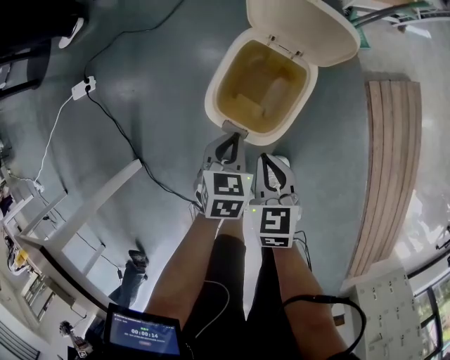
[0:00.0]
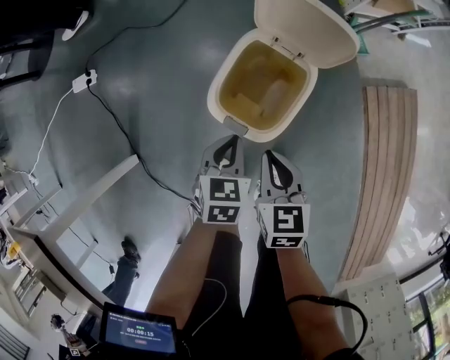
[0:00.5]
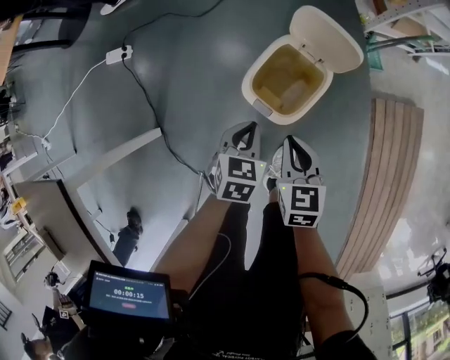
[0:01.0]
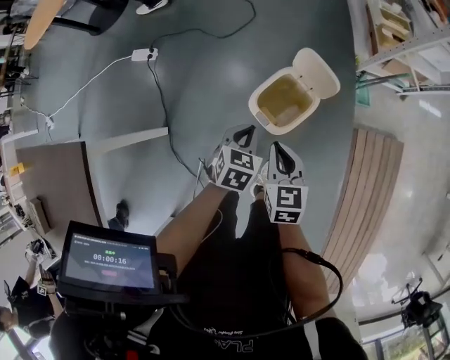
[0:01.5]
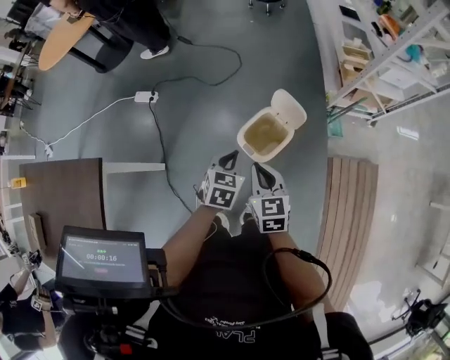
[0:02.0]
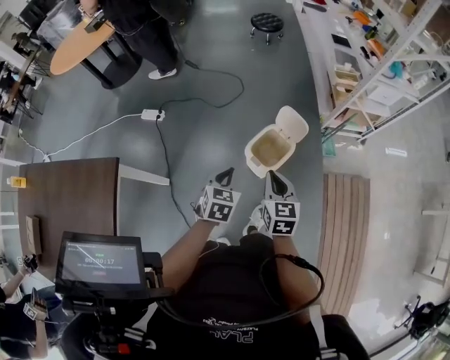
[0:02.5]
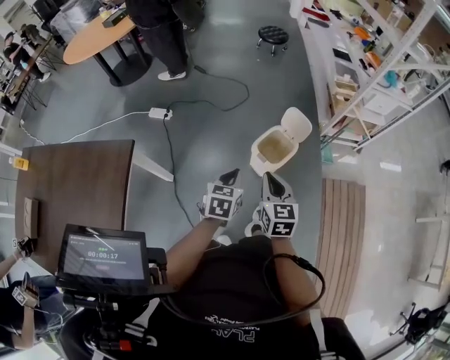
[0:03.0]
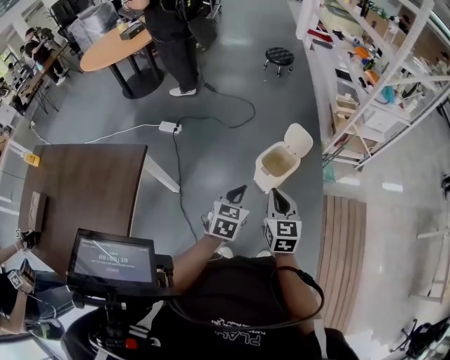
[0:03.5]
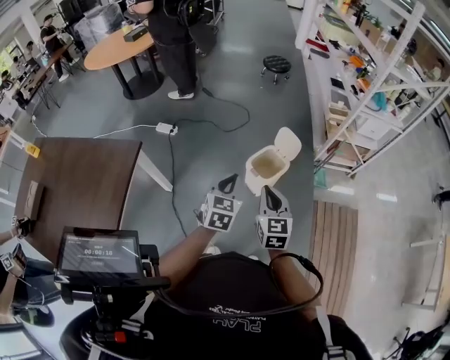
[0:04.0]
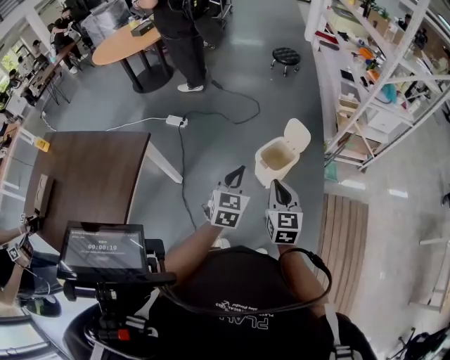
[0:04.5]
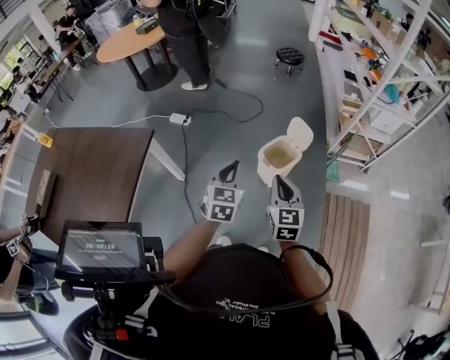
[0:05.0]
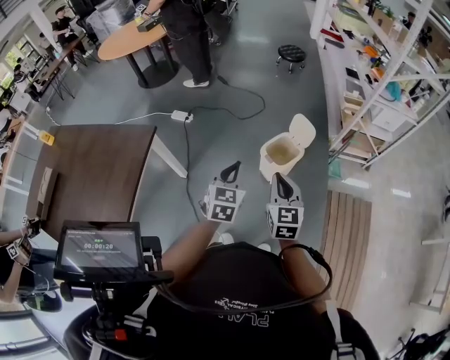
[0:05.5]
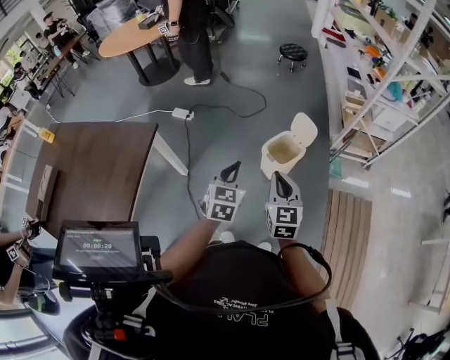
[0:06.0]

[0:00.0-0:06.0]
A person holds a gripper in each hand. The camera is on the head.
0:00.0 to 0:02.0: The two grippers go about 40 cm upward. The right gripper changes its angle by roughly 20 degrees.
0:02.0 to 0:04.0: Both grippers move backward and upward, about 30 cm. The left gripper rotates about 20 degrees.
0:04.0 to 0:06.0: The grippers stay close to where they were, moving slightly.

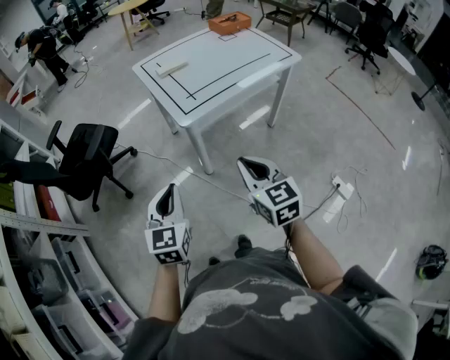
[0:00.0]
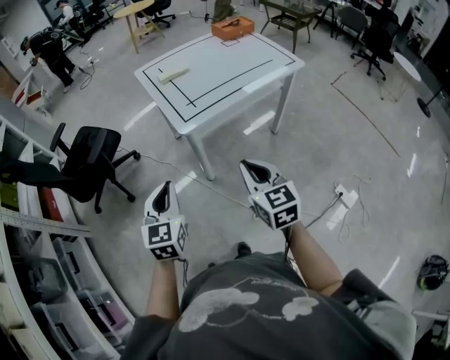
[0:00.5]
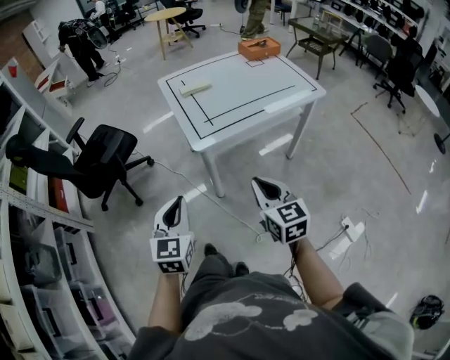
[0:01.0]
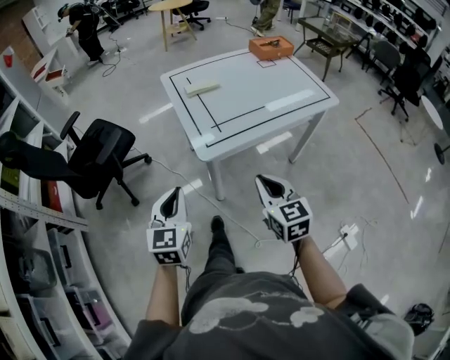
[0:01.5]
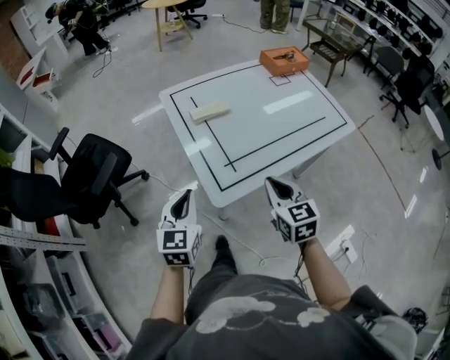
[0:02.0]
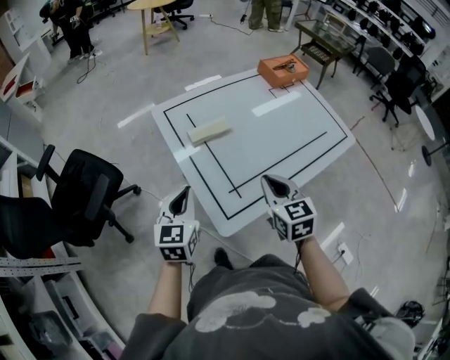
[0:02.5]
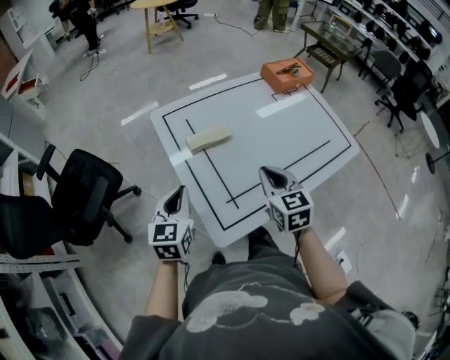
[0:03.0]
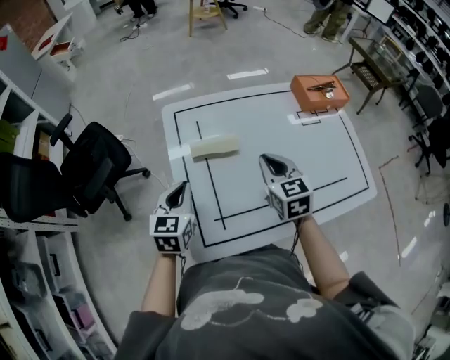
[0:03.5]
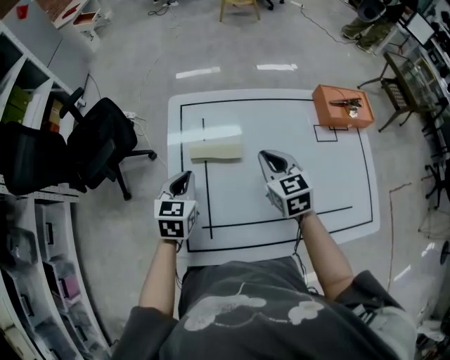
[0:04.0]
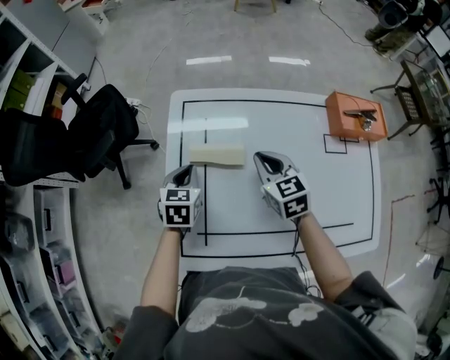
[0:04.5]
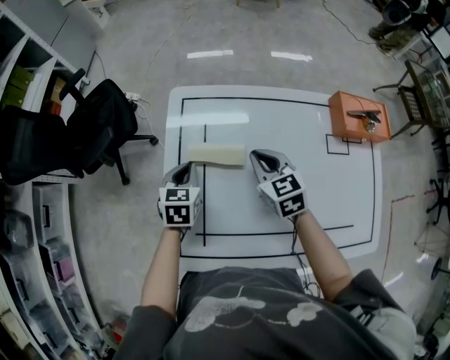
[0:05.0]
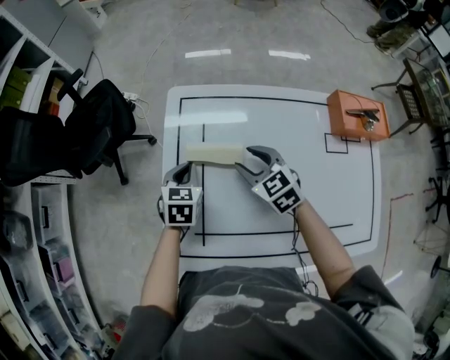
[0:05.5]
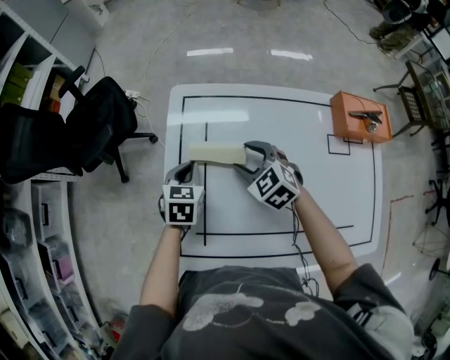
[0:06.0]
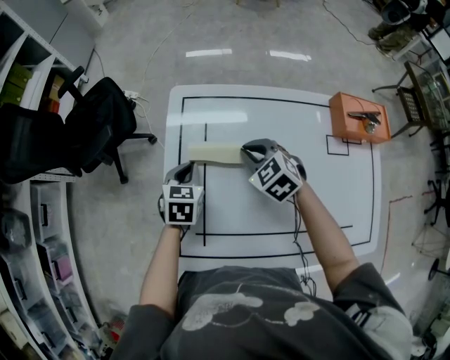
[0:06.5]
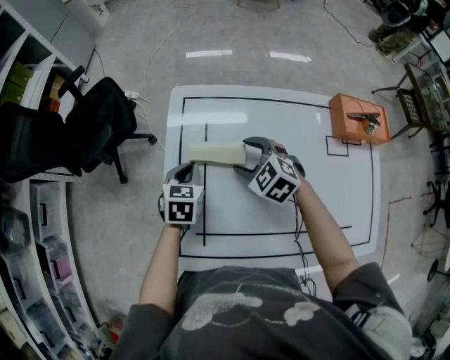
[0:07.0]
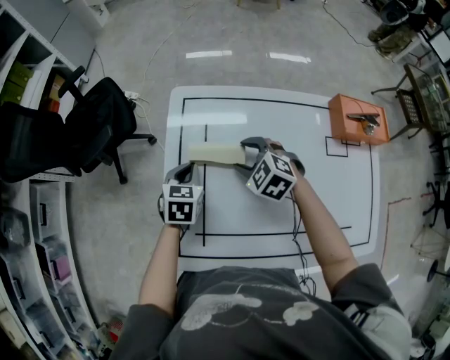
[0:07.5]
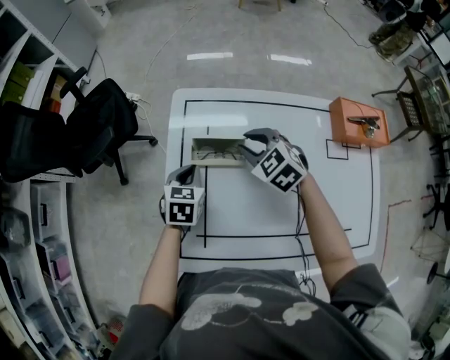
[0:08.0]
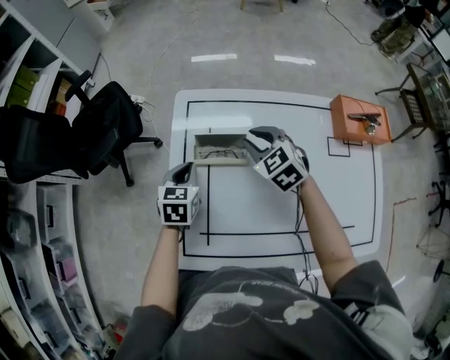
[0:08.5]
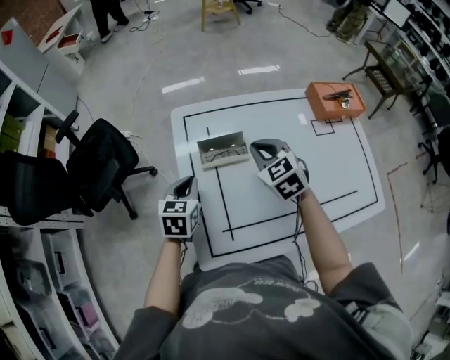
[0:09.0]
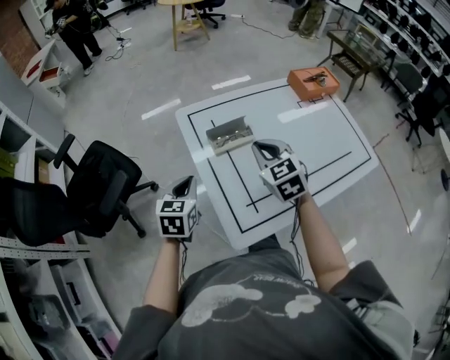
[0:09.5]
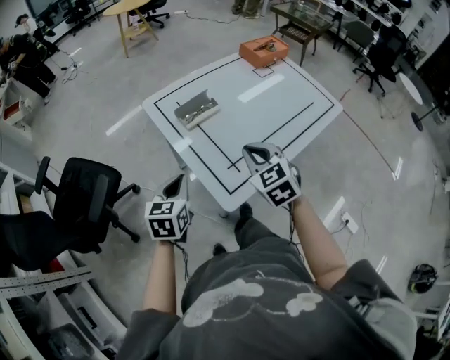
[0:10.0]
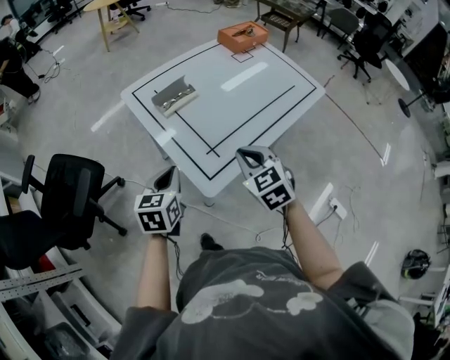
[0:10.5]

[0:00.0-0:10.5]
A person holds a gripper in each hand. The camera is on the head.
0:00.0 to 0:02.0: The two grippers go some 30 cm forward.
0:02.0 to 0:04.0: The right gripper changes place by about 35 cm, and swivels about 30 degrees. The left gripper changes place by some 30 cm, and rotates about 20 degrees.
0:04.0 to 0:06.5: The left gripper heads downward, covering some 5 cm; the right gripper heads downward and forward, covering approximately 10 cm, rotates some 40 degrees, and opens, then closes again.
0:06.5 to 0:08.5: The right gripper ends up roughly 5 cm from where it was, and opens, then closes again.
0:08.5 to 0:10.5: The right gripper changes place by some 40 cm, and changes its angle by roughly 50 degrees. The left gripper ends up roughly 25 cm from where it was, and changes its angle by roughly 40 degrees.

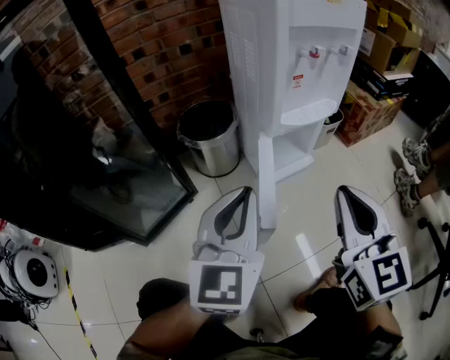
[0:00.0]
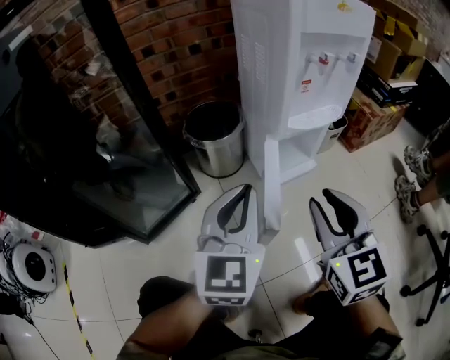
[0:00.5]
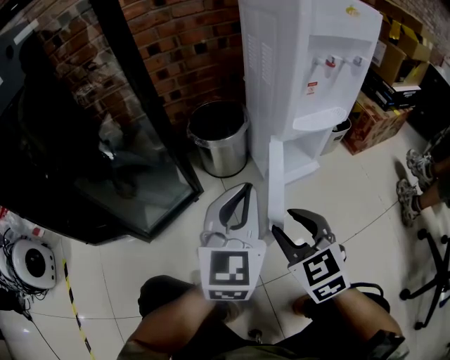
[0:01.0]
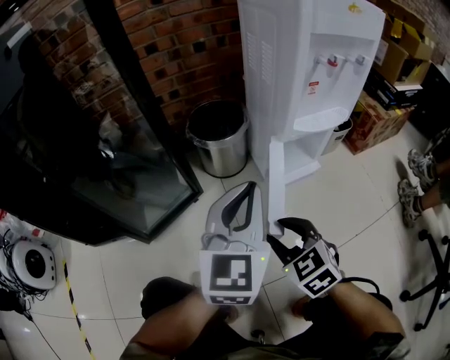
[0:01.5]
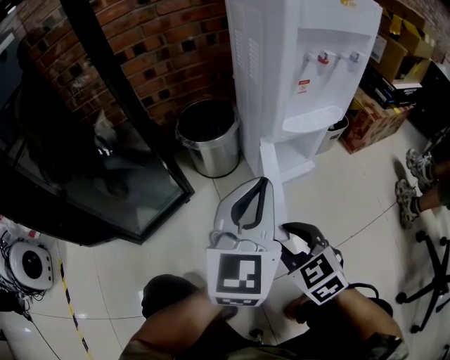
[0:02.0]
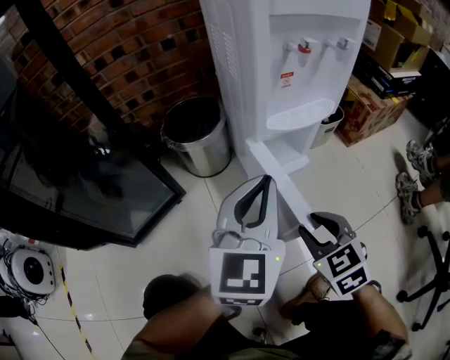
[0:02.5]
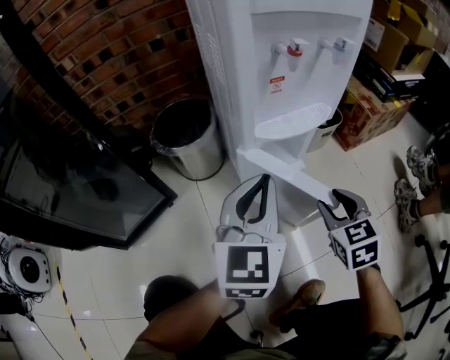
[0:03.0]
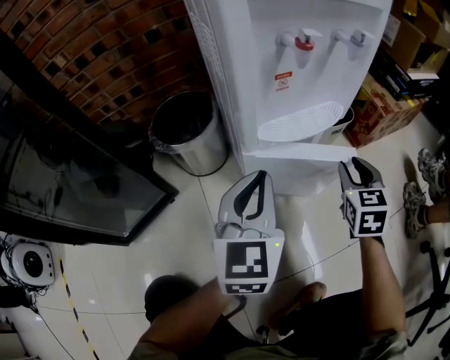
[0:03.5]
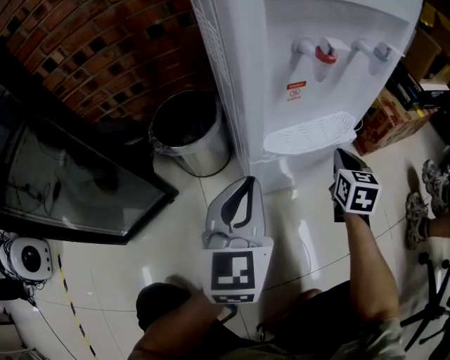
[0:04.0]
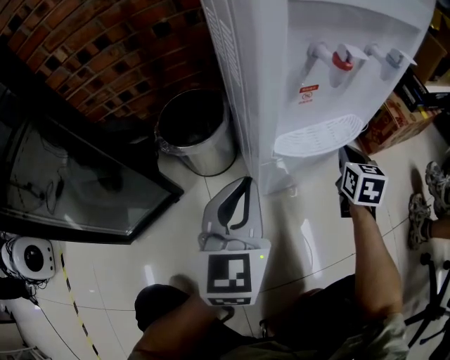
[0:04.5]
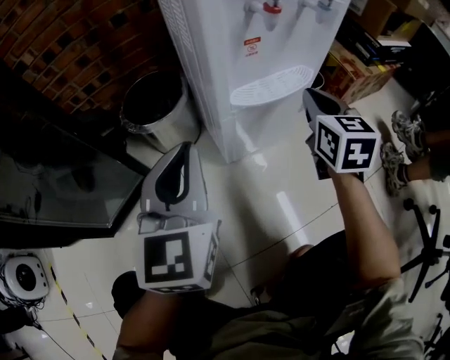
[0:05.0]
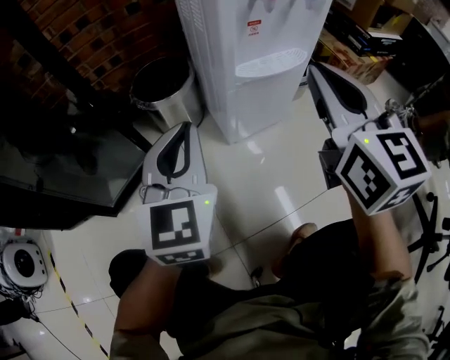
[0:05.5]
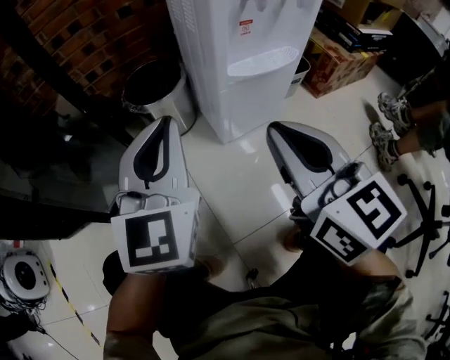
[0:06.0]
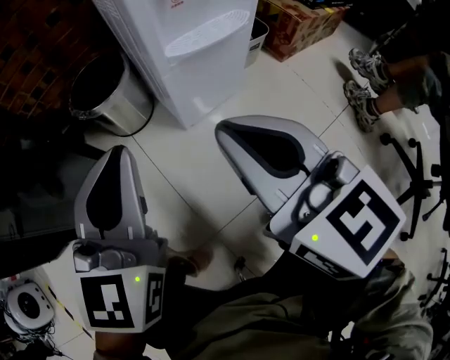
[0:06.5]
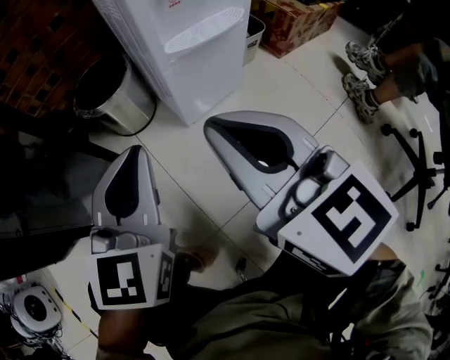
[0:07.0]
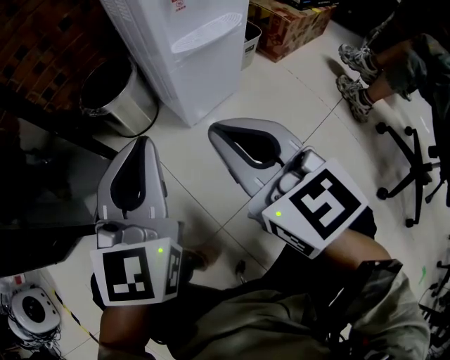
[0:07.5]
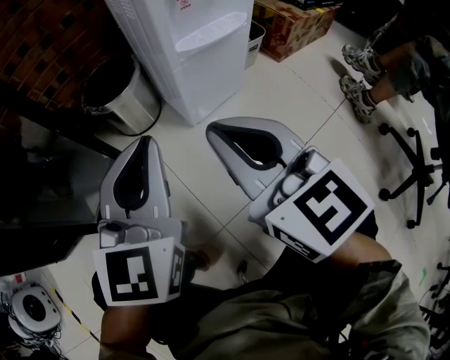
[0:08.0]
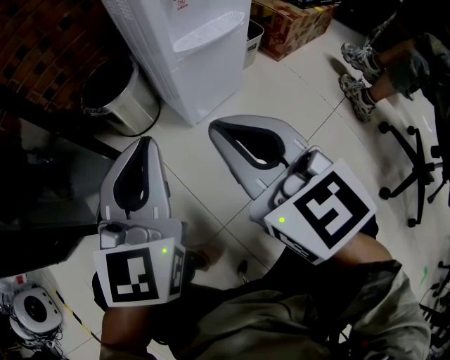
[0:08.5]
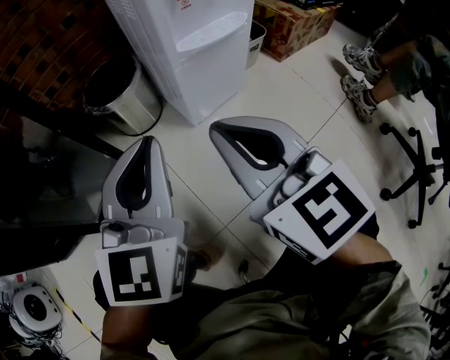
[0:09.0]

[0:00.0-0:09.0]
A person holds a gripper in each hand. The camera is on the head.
0:00.0 to 0:02.0: The right gripper is displaced downward and to the left by approximately 20 cm, rotates approximately 40 degrees, and opens up. The left gripper changes place by roughly 5 cm.
0:02.0 to 0:04.5: The left gripper shifts about 15 cm forward and downward; the right gripper heads forward and to the right, covering approximately 40 cm, rotates approximately 40 degrees, and closes.
0:04.5 to 0:07.0: The left gripper shifts roughly 15 cm backward. The right gripper travels backward, upward and to the left by approximately 40 cm, and rotates about 30 degrees.
0:07.0 to 0:09.0: The grippers make only small movements.

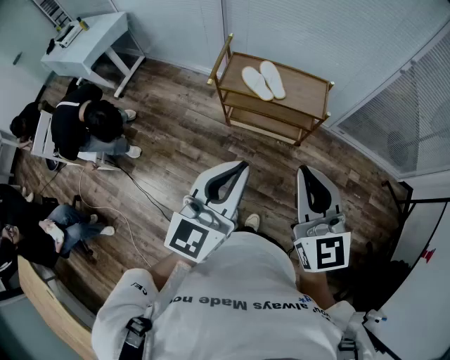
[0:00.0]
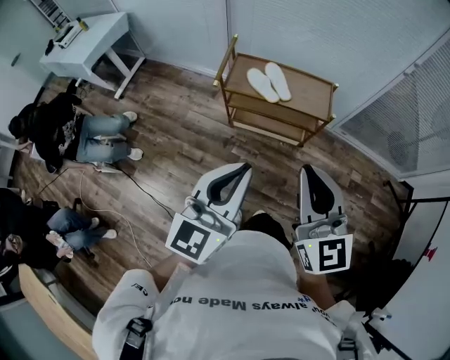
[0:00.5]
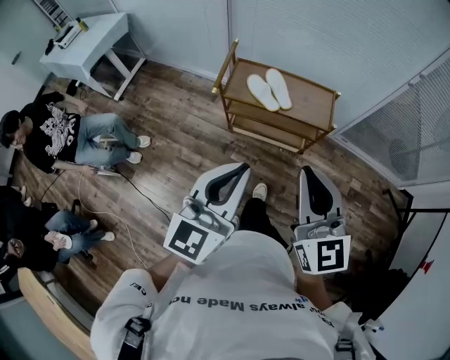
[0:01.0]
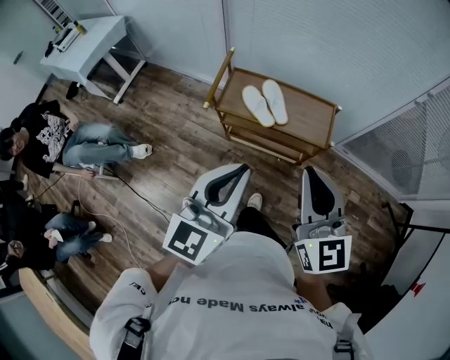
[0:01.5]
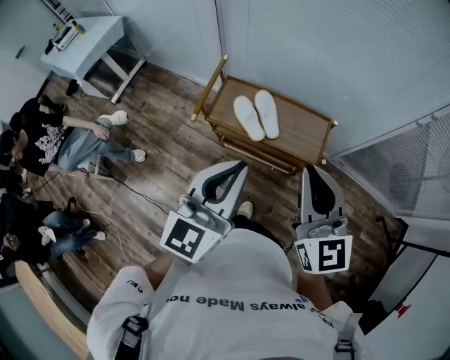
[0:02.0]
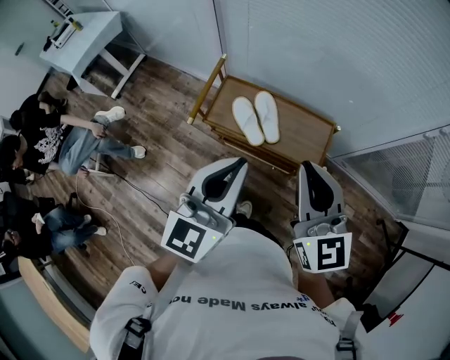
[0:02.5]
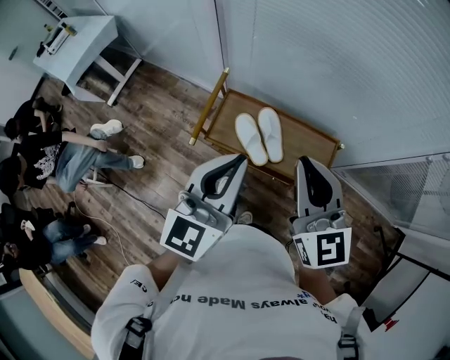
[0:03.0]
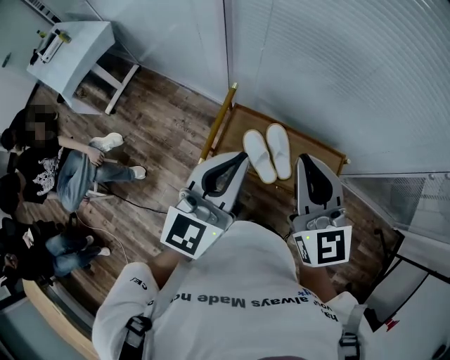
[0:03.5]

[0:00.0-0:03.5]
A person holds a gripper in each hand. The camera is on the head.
0:00.0 to 0:02.0: Both grippers travel together forward, roughly 30 cm.
0:02.0 to 0:03.5: Both grippers travel together forward and to the left, about 30 cm.
